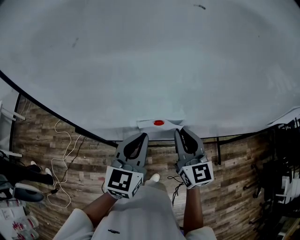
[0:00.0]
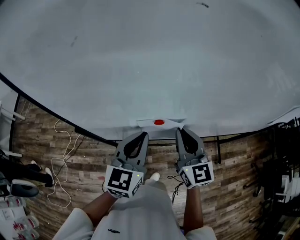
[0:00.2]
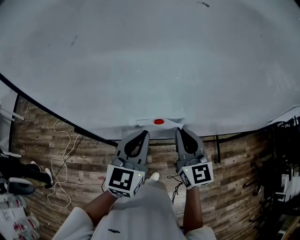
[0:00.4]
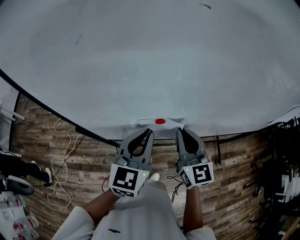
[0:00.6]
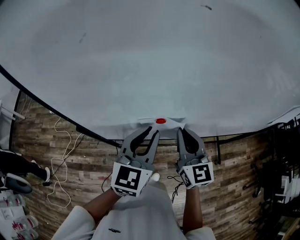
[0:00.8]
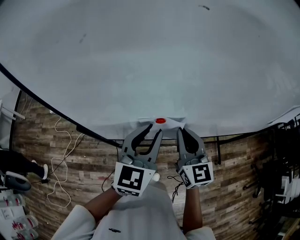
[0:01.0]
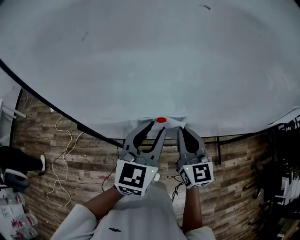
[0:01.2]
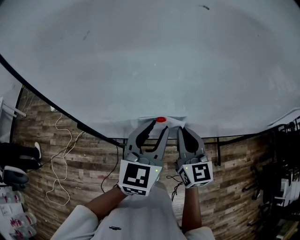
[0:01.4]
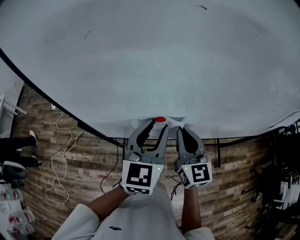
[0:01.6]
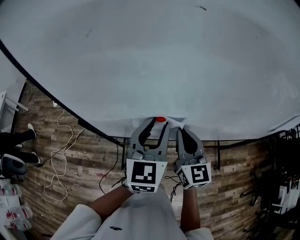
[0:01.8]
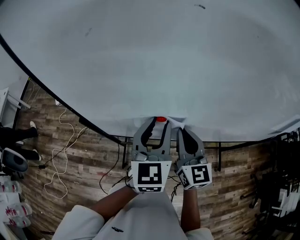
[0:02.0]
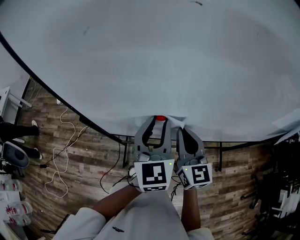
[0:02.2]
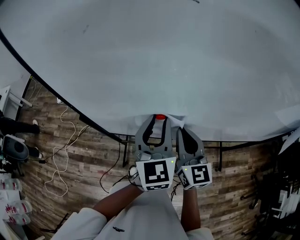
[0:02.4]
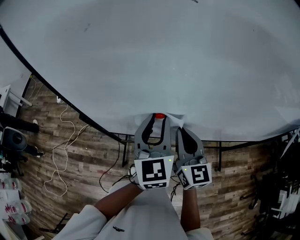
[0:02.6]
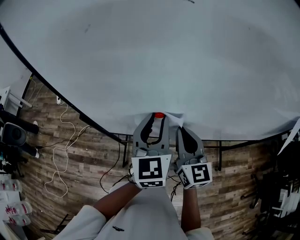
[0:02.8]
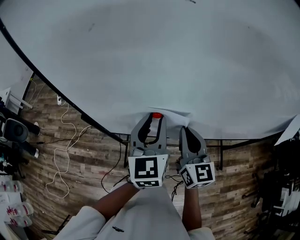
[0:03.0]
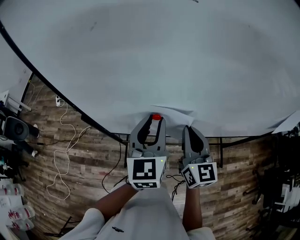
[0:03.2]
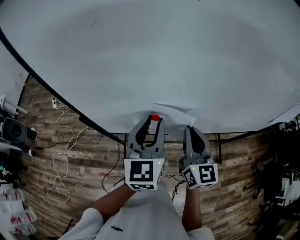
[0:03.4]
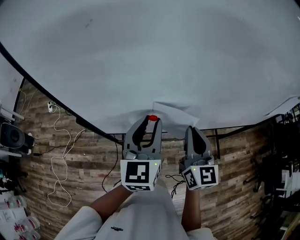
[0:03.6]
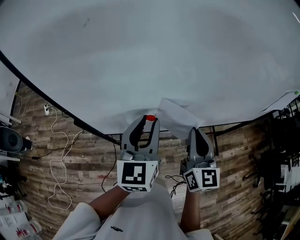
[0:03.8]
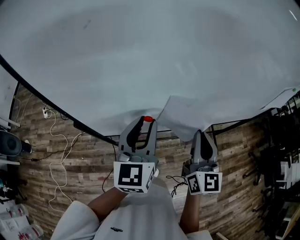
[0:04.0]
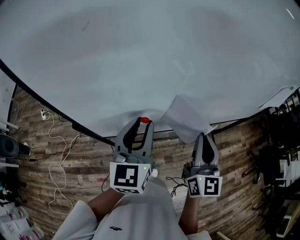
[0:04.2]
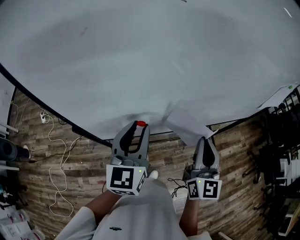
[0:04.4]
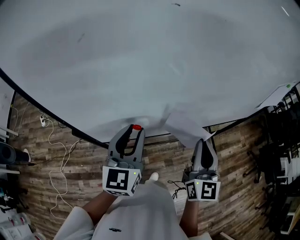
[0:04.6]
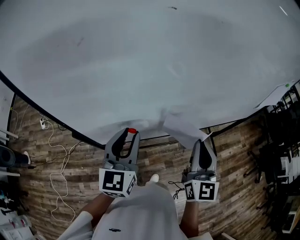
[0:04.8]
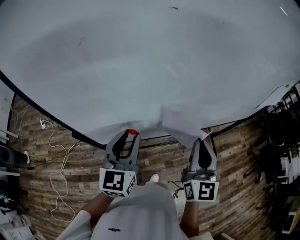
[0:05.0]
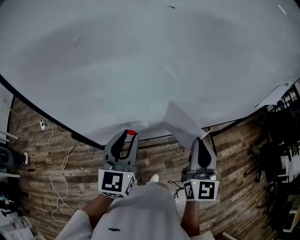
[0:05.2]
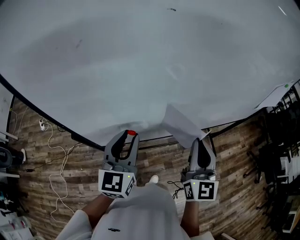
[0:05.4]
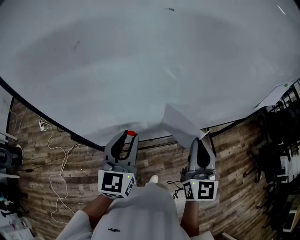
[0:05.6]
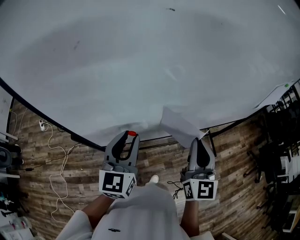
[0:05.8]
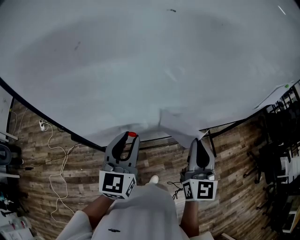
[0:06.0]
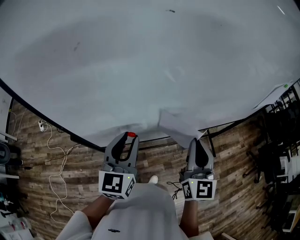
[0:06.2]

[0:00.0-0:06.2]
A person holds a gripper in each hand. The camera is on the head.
0:00.0 to 0:01.6: The left gripper shifts by about 5 cm, and opens.
0:01.6 to 0:03.2: The grippers stay close to where they were, moving slightly.
0:03.2 to 0:04.6: The right gripper travels to the right and backward by some 10 cm, and rotates approximately 30 degrees.
0:04.6 to 0:06.2: The grippers make only small movements.

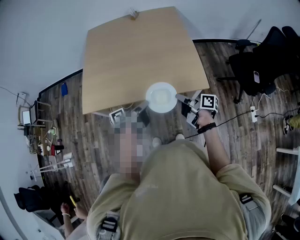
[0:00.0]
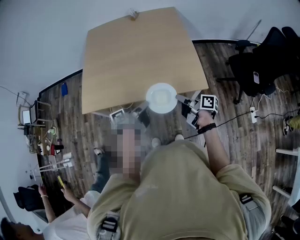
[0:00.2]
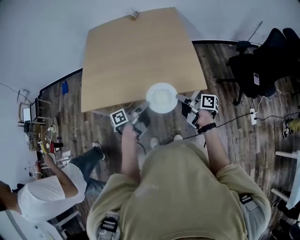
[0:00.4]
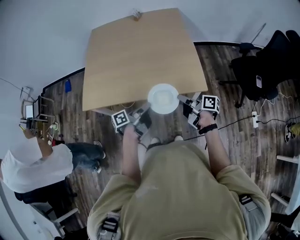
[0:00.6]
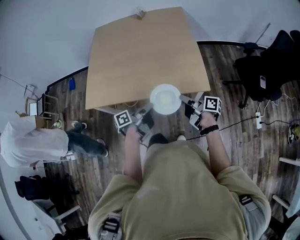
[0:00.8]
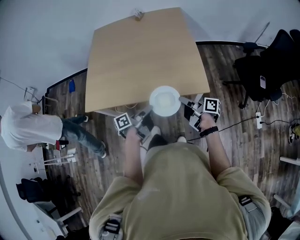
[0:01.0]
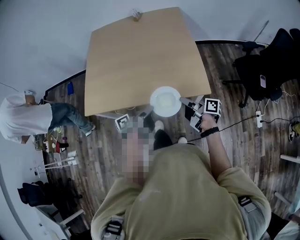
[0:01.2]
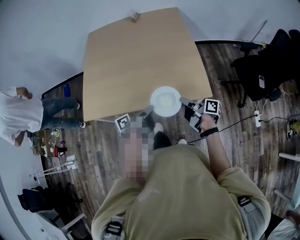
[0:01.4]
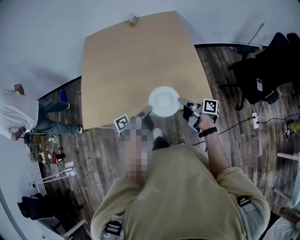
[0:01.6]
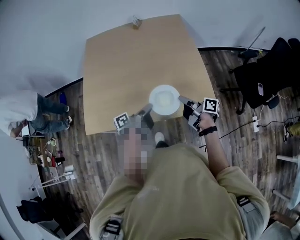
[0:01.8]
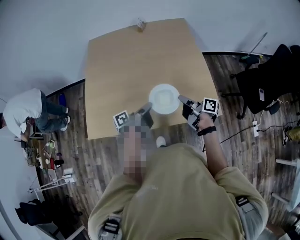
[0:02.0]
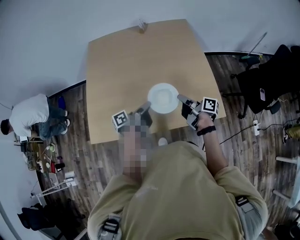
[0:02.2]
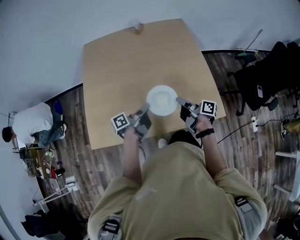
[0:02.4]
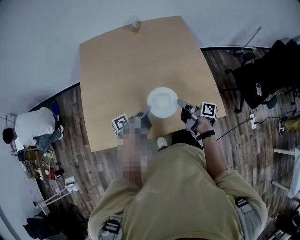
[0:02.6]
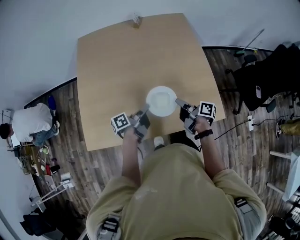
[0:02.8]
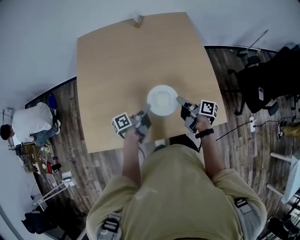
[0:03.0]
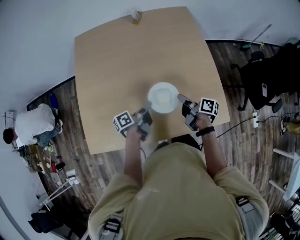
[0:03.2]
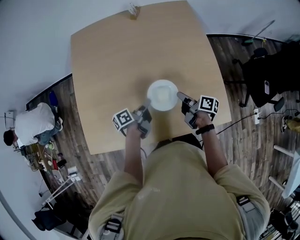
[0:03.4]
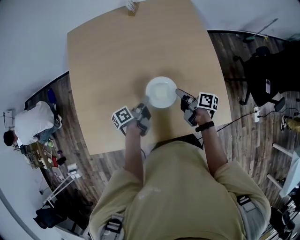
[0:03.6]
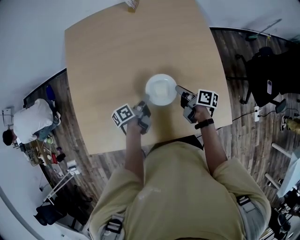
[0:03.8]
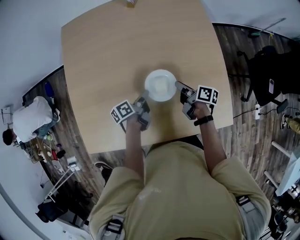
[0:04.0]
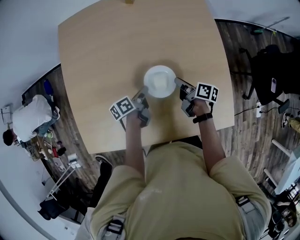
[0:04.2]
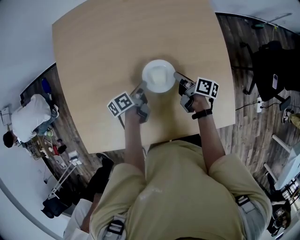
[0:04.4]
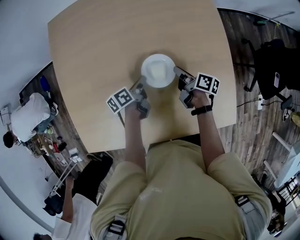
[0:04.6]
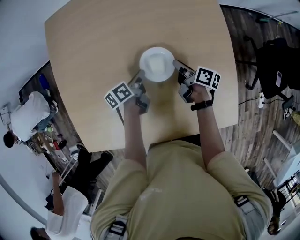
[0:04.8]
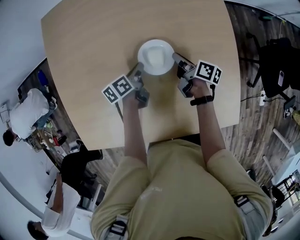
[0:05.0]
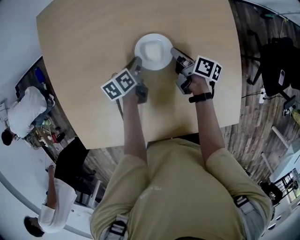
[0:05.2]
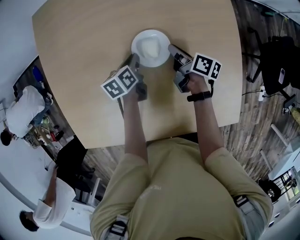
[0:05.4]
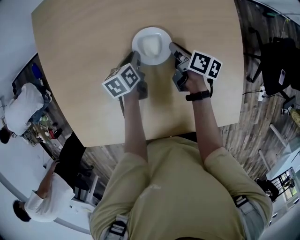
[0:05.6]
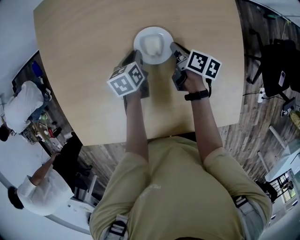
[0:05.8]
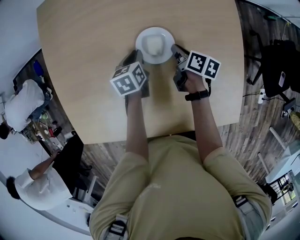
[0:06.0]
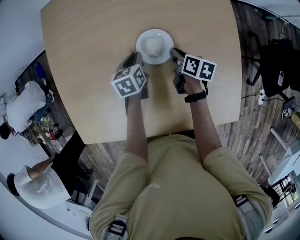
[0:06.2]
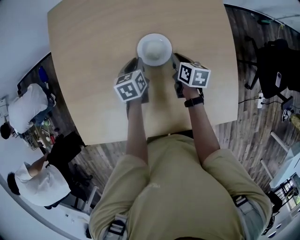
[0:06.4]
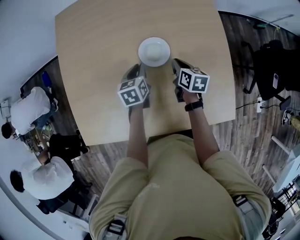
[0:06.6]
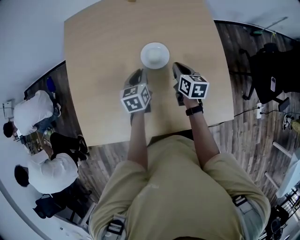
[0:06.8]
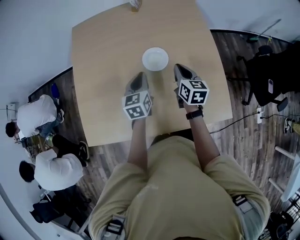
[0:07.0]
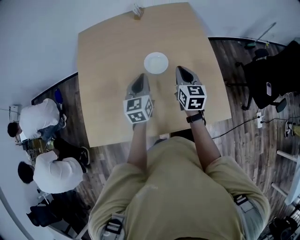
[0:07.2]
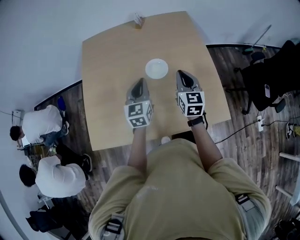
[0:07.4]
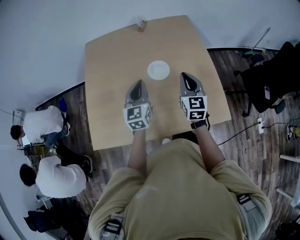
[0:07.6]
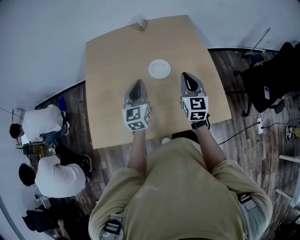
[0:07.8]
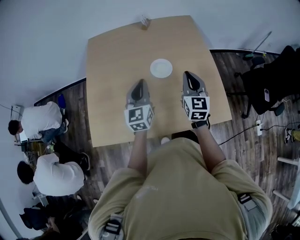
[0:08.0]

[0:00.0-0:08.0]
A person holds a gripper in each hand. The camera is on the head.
0:00.0 to 0:01.6: Both grippers travel together forward, roughly 10 cm.
0:01.6 to 0:03.2: The grippers both shift forward and to the left by roughly 25 cm.
0:03.2 to 0:04.8: The grippers both shift forward and downward by about 25 cm. The left gripper changes its angle by roughly 20 degrees.
0:04.8 to 0:06.4: The right gripper swivels roughly 30 degrees. Meanwhile the left gripper changes its angle by some 40 degrees.
0:06.4 to 0:08.0: The two grippers go roughly 35 cm upward and backward. The left gripper tips its fingers upward by about 40 degrees; the right gripper tips its fingers upward by about 40 degrees.

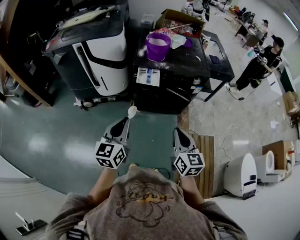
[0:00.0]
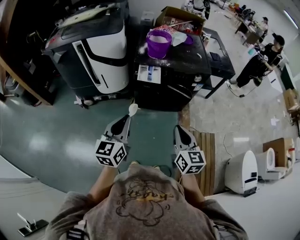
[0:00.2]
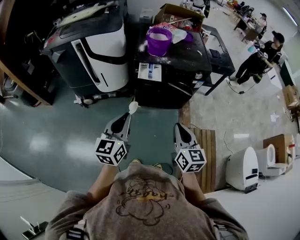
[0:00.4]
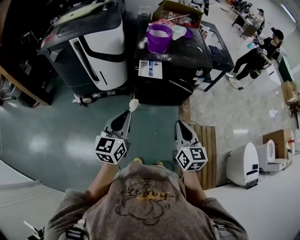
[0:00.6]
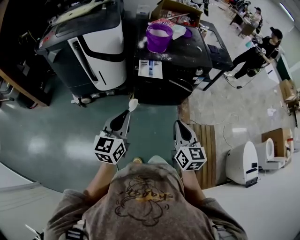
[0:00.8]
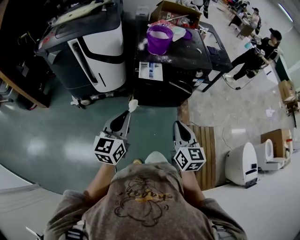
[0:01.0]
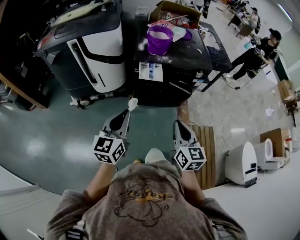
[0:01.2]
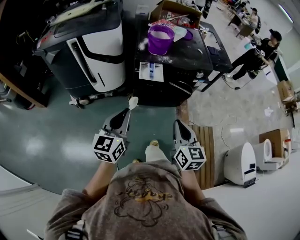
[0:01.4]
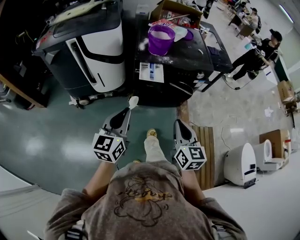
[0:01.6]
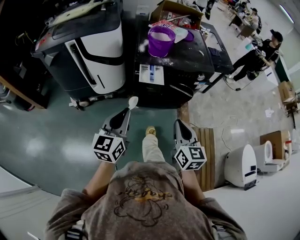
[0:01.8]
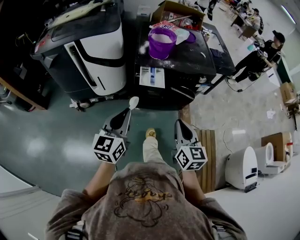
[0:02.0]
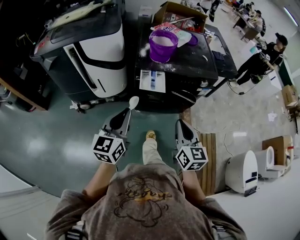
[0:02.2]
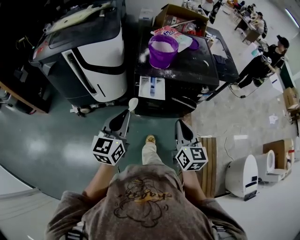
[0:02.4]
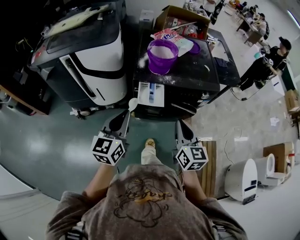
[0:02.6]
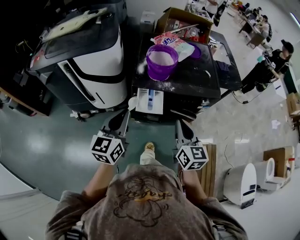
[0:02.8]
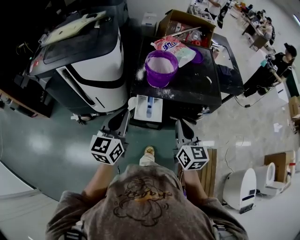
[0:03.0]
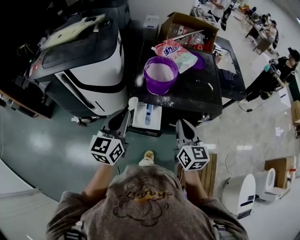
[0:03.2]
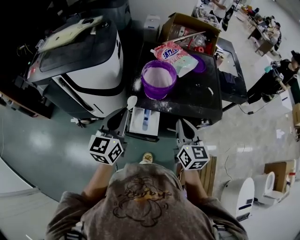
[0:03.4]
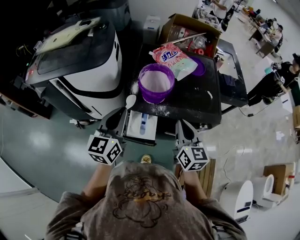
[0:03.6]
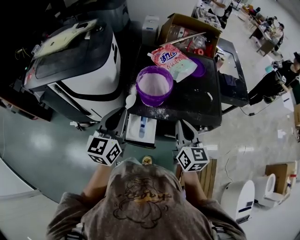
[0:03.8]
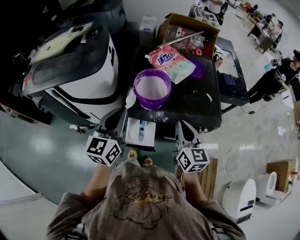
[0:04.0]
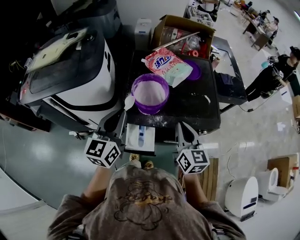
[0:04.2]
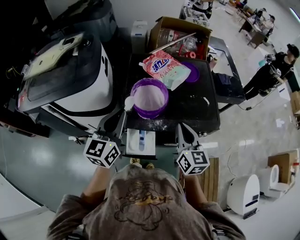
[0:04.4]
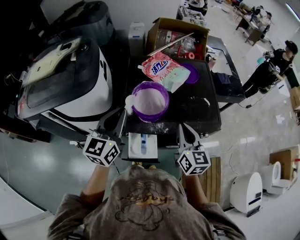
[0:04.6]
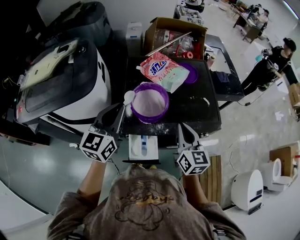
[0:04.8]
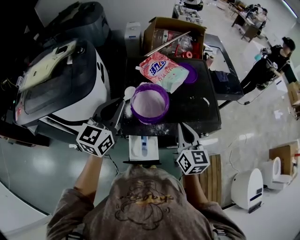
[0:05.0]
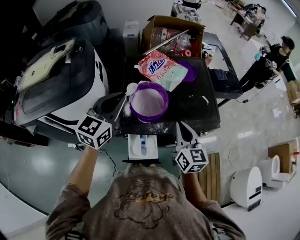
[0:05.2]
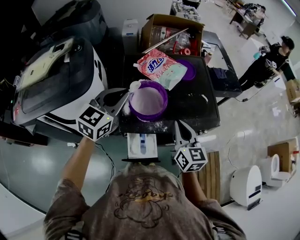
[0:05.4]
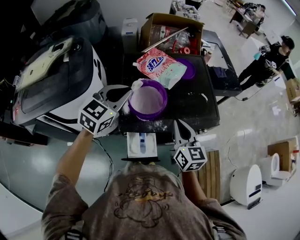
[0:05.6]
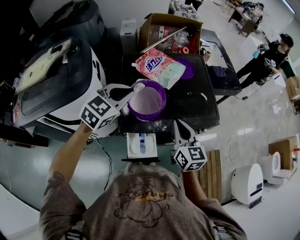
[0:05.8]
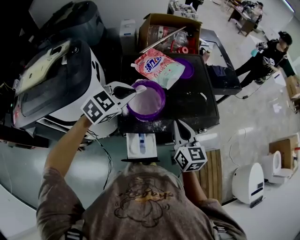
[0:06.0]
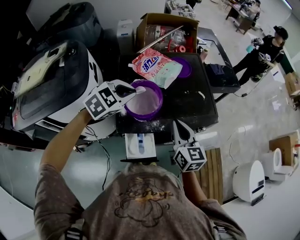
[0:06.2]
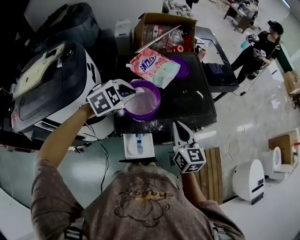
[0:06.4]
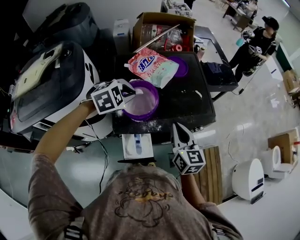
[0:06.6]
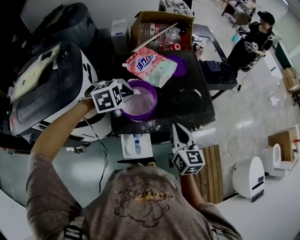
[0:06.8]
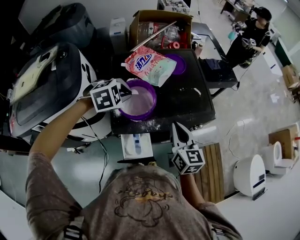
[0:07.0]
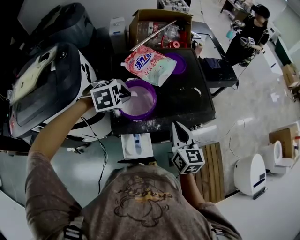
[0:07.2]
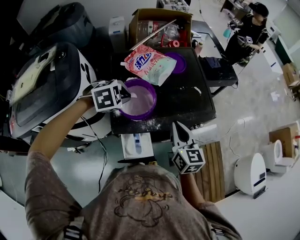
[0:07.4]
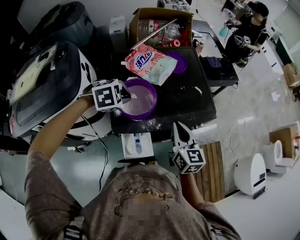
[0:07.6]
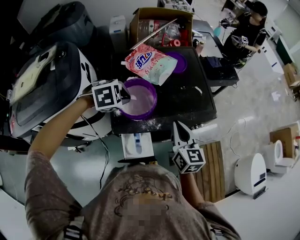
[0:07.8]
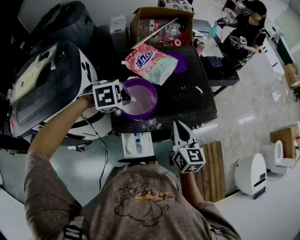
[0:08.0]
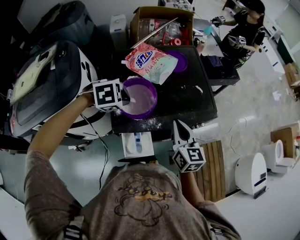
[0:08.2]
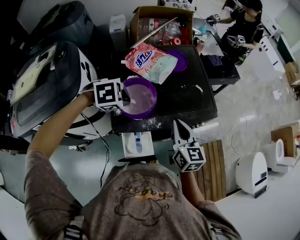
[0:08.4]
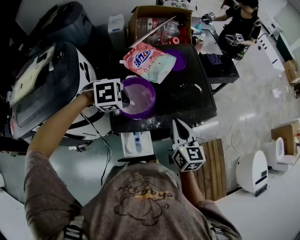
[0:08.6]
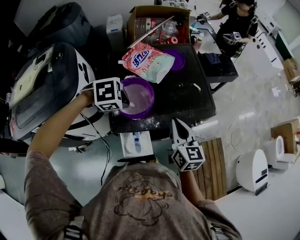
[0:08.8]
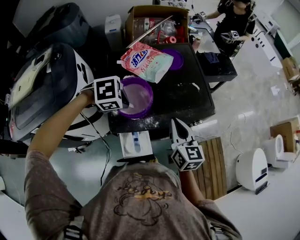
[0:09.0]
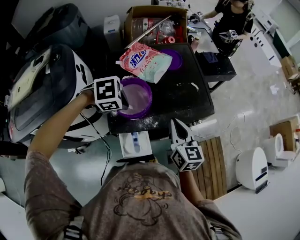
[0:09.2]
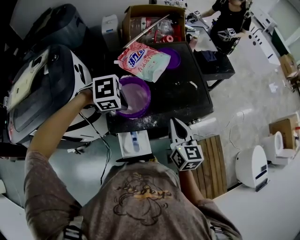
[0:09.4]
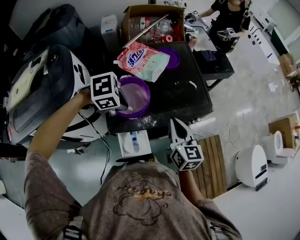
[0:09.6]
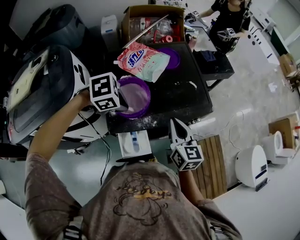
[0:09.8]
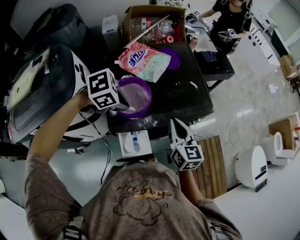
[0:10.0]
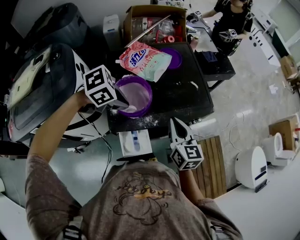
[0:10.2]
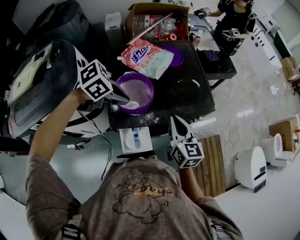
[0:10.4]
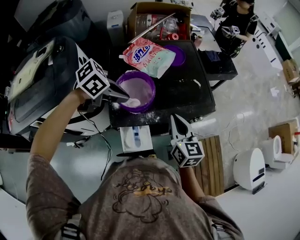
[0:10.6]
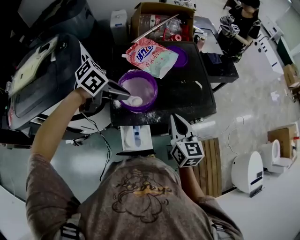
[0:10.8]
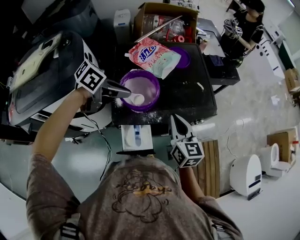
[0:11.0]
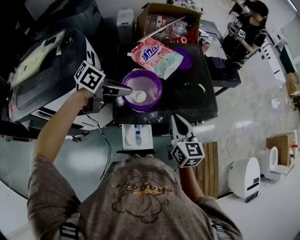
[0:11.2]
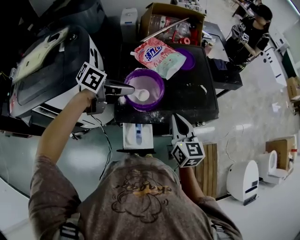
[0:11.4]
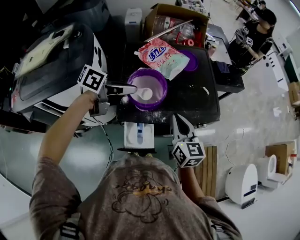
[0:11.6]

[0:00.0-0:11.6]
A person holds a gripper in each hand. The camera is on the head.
0:00.0 to 0:01.4: Both grippers move to the left, some 5 cm.
0:01.4 to 0:02.8: The two grippers go some 20 cm forward.
0:02.8 to 0:04.4: The grippers both shift forward by approximately 25 cm.
0:04.4 to 0:05.8: The left gripper moves forward, roughly 10 cm, and swivels some 50 degrees.
0:05.8 to 0:07.2: The left gripper is displaced downward by approximately 10 cm, and tips its fingers downward by roughly 40 degrees.
0:07.2 to 0:08.8: There are only small adjustments of the grippers.
0:08.8 to 0:10.2: The left gripper swivels roughly 20 degrees.
0:10.2 to 0:11.6: The left gripper shifts by some 5 cm, and angles its fingers upward, by roughly 40 degrees.
